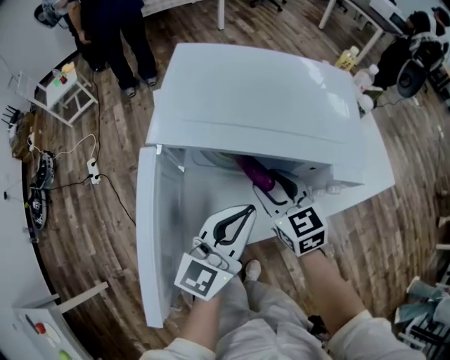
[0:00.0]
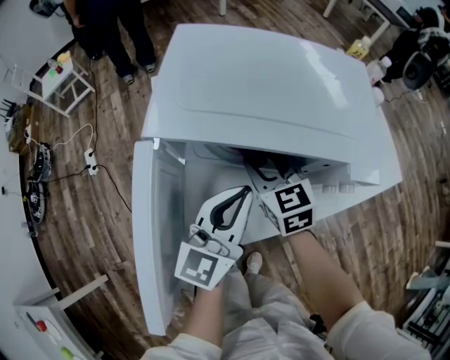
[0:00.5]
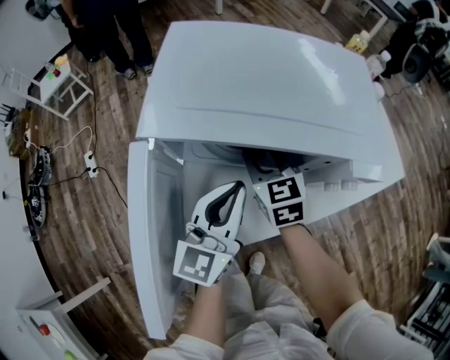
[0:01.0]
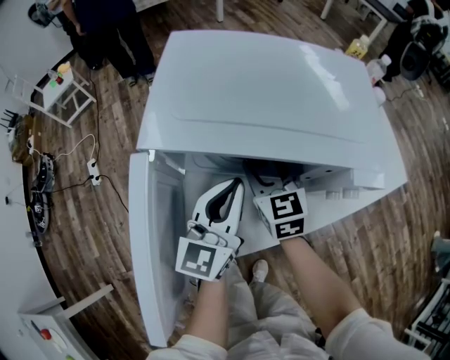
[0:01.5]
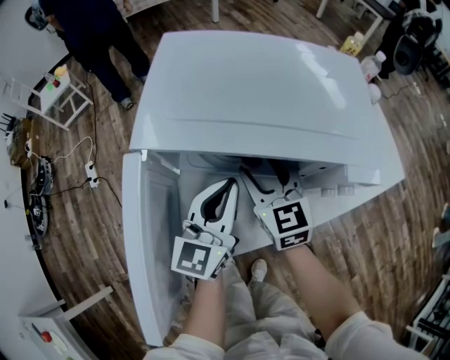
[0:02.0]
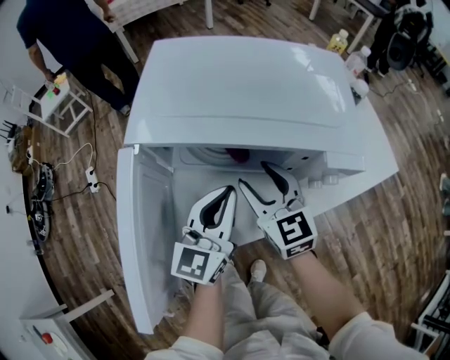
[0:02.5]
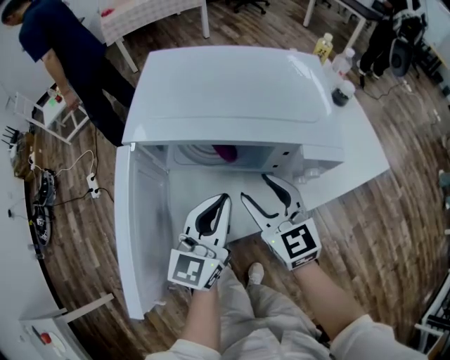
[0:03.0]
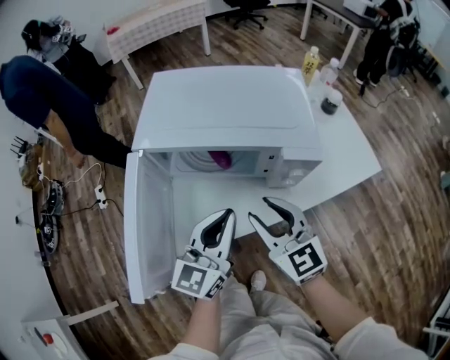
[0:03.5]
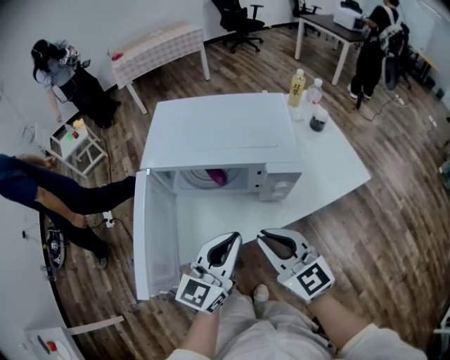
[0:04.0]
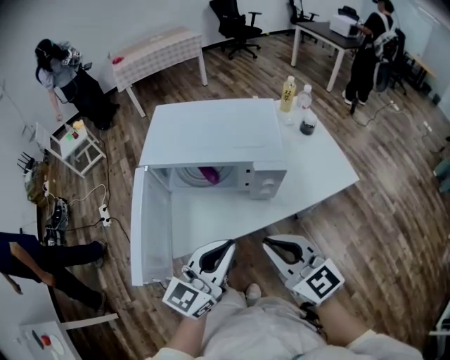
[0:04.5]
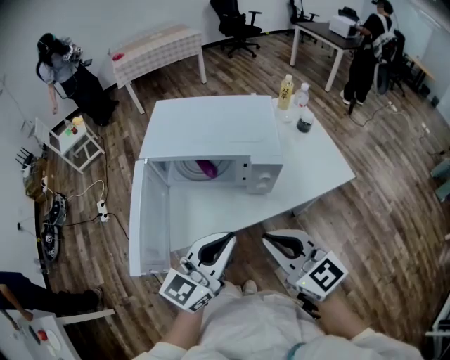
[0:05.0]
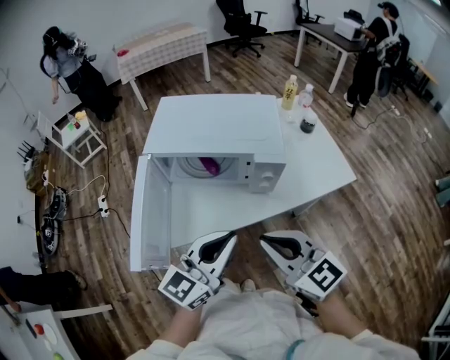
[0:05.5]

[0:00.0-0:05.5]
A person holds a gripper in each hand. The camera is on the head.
0:00.0 to 0:02.0: The left gripper is displaced forward by approximately 5 cm.
0:02.0 to 0:03.5: The right gripper travels backward, upward and to the right by approximately 20 cm; the left gripper heads backward, to the right and upward, covering approximately 15 cm.
0:03.5 to 0:05.5: Both grippers move backward and upward, about 15 cm. The right gripper closes.

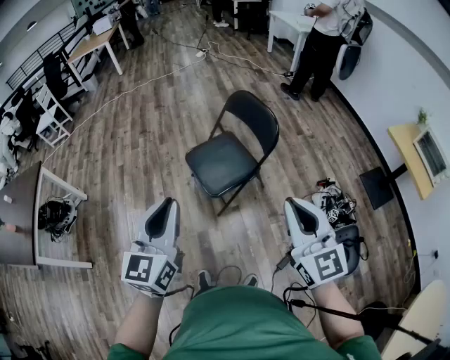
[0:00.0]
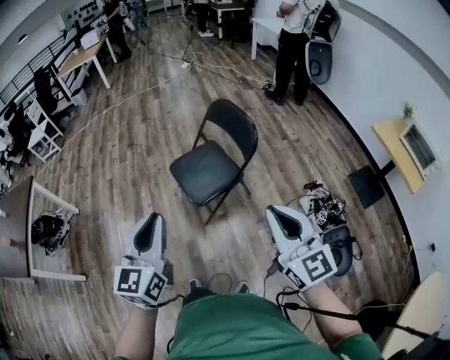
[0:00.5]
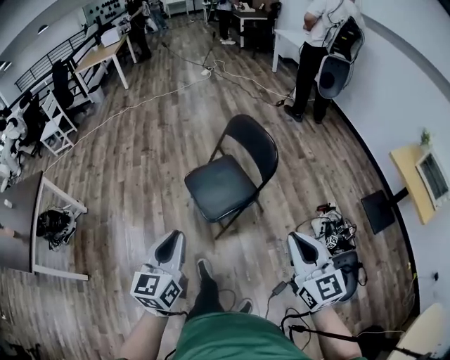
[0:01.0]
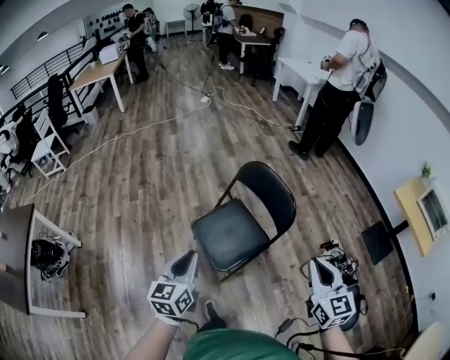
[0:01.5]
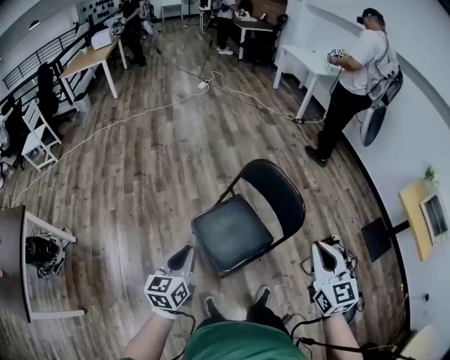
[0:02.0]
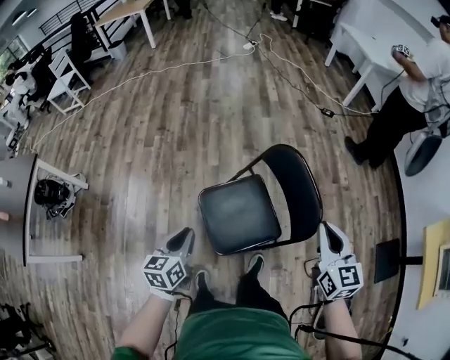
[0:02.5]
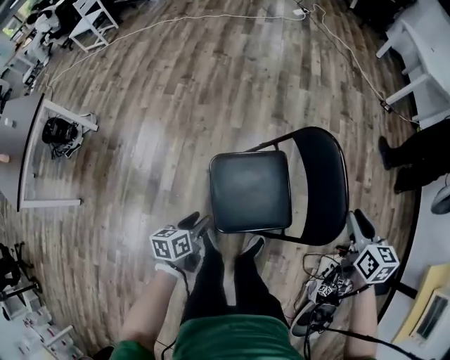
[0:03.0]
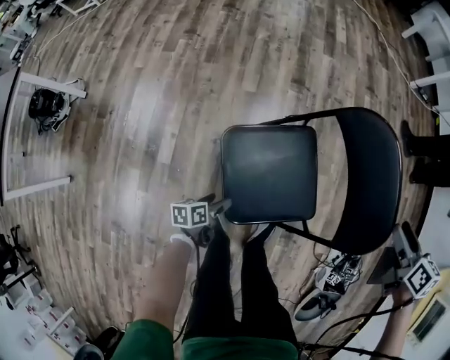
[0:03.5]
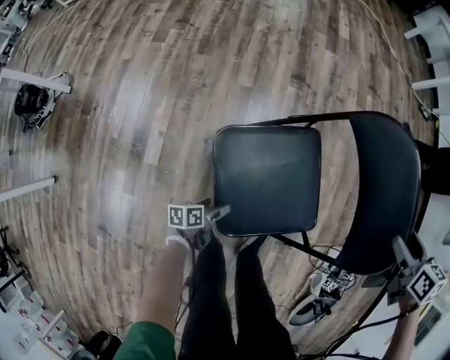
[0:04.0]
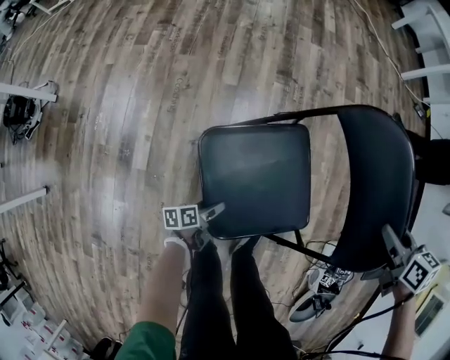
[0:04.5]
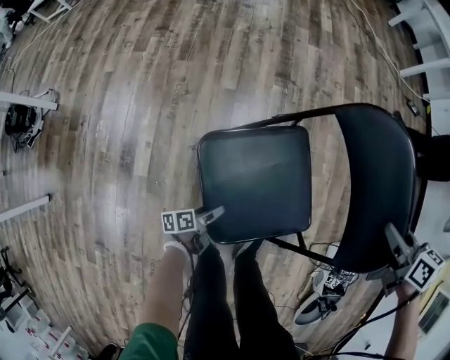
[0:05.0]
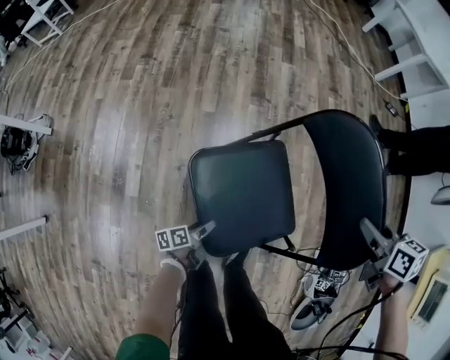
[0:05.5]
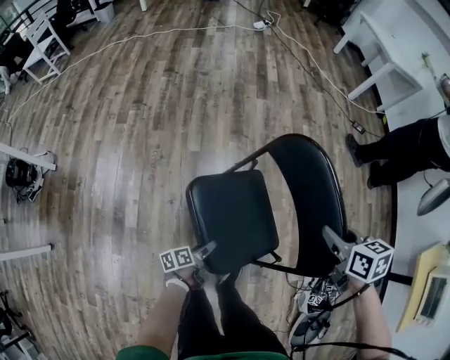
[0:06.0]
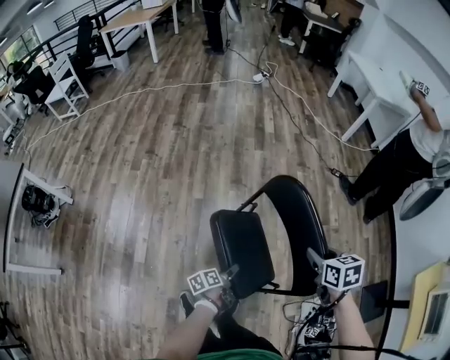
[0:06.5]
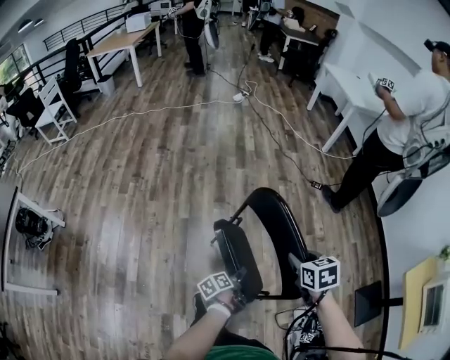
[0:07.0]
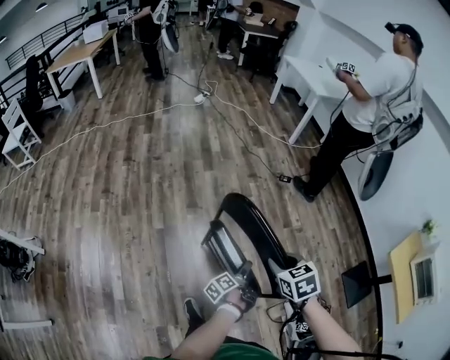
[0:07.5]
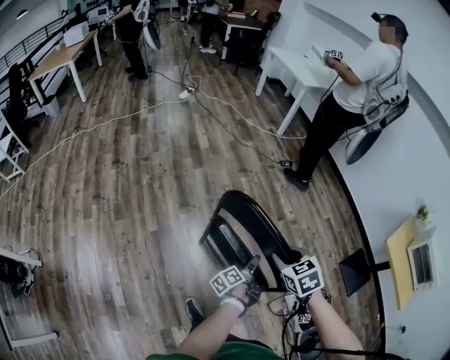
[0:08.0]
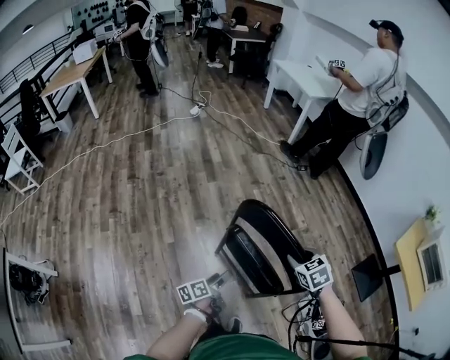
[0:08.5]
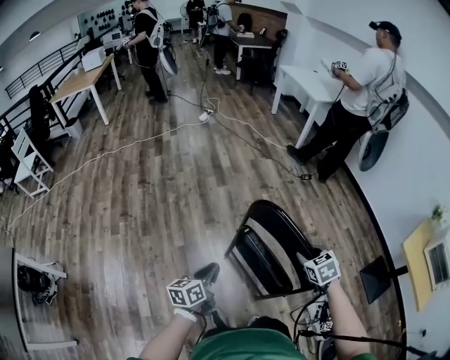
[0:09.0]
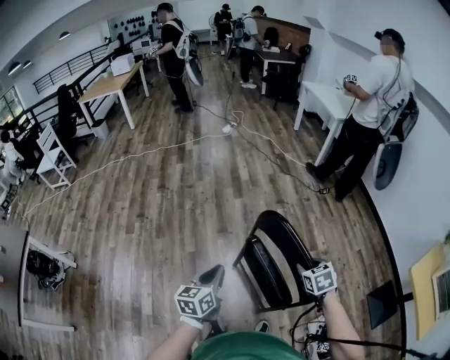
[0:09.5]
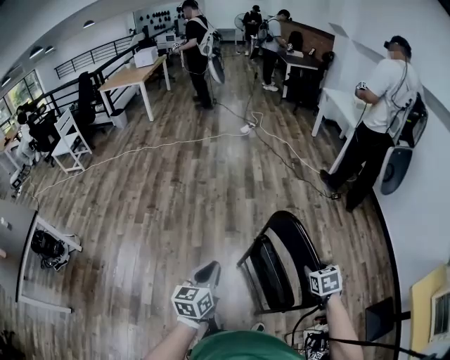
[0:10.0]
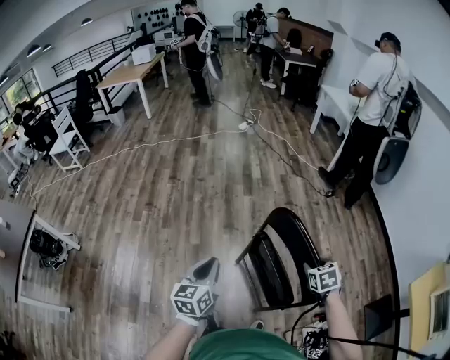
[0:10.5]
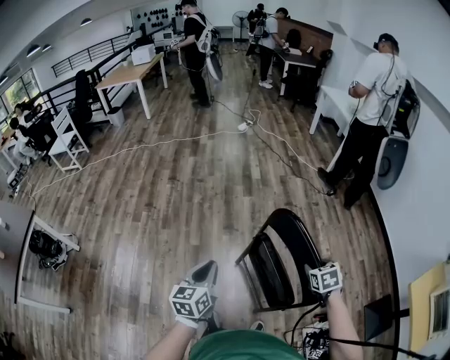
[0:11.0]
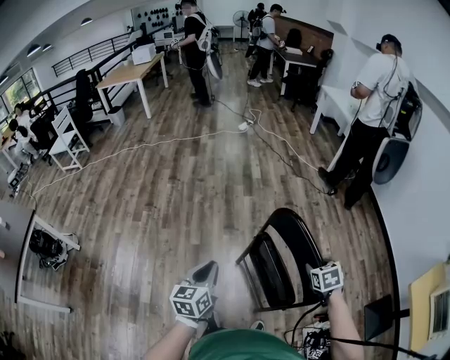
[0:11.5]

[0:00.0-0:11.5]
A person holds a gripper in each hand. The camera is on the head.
0:00.0 to 0:02.0: The left gripper travels forward and downward by about 35 cm, and changes its angle by approximately 20 degrees. The right gripper moves forward, about 30 cm.
0:02.0 to 0:04.0: The right gripper goes some 50 cm downward and forward, angles its fingers downward, by roughly 40 degrees, and opens its fingers. The left gripper moves downward, approximately 60 cm, rolls counterclockwise, seen from behind, by approximately 50 degrees, and opens its fingers.
0:04.0 to 0:06.0: The right gripper shifts roughly 10 cm upward, and closes its fingers. The left gripper moves upward and to the right, some 20 cm.
0:06.0 to 0:07.5: The right gripper shifts about 10 cm upward and to the right, while the left gripper shifts roughly 40 cm to the right, upward and forward.
0:07.5 to 0:09.5: The left gripper shifts some 30 cm upward and to the left, rotates around the line of its fingers by roughly 60 degrees, clockwise from behind, and closes up. Meanwhile the right gripper is displaced to the right by roughly 5 cm.
0:09.5 to 0:11.5: The grippers move only a little.

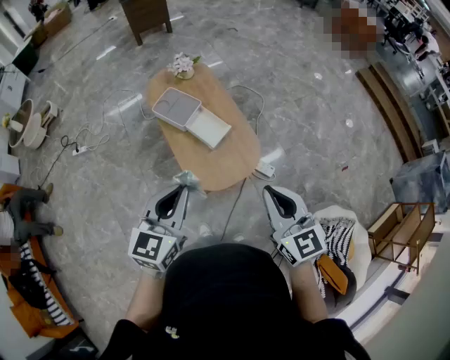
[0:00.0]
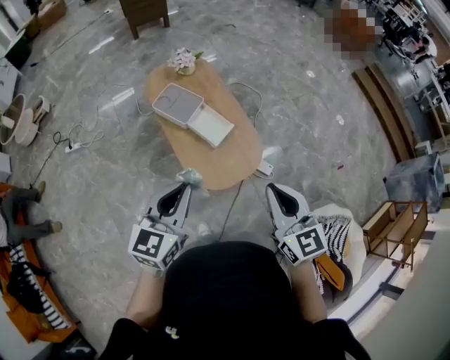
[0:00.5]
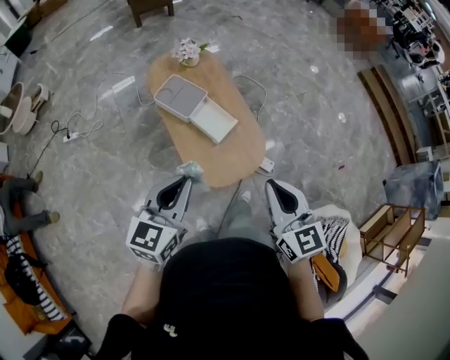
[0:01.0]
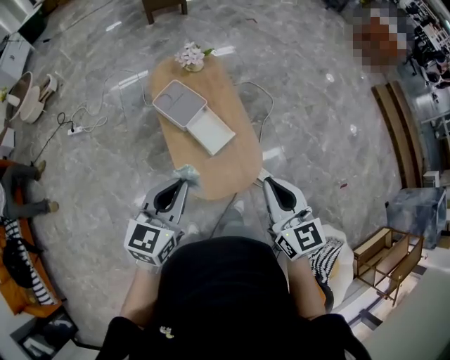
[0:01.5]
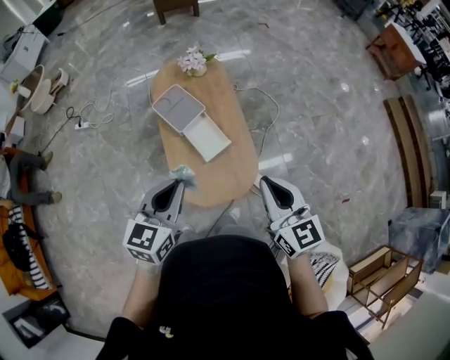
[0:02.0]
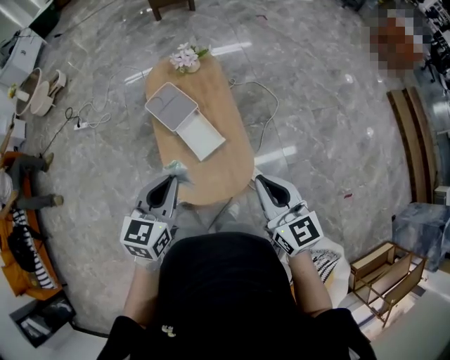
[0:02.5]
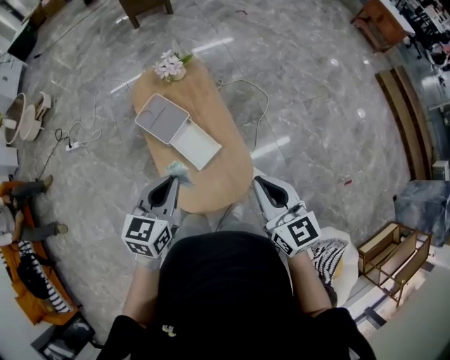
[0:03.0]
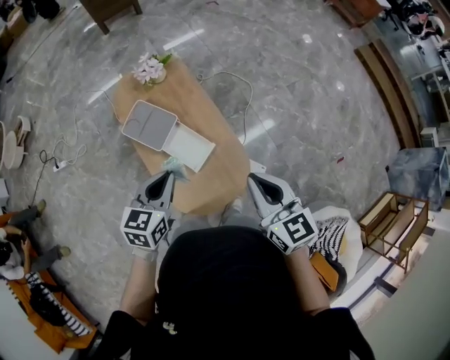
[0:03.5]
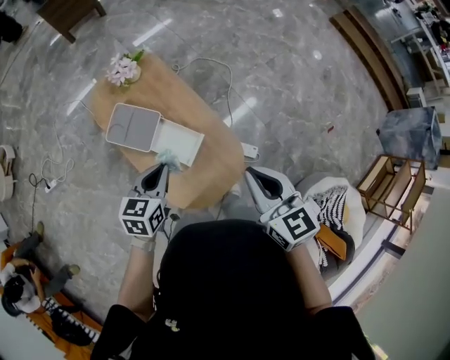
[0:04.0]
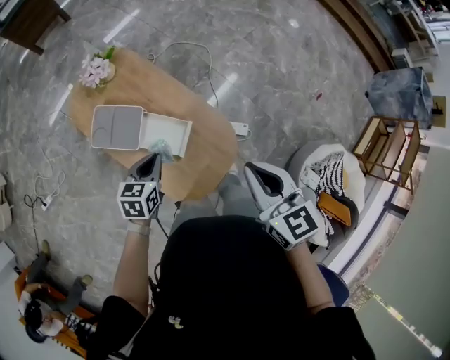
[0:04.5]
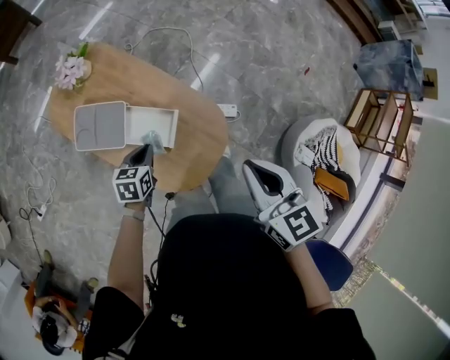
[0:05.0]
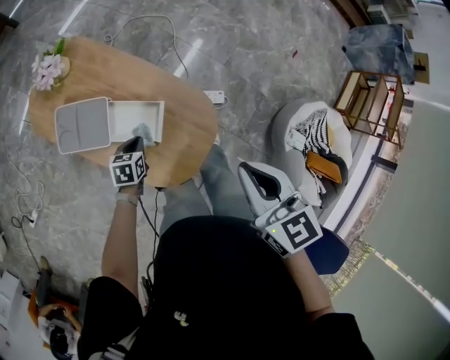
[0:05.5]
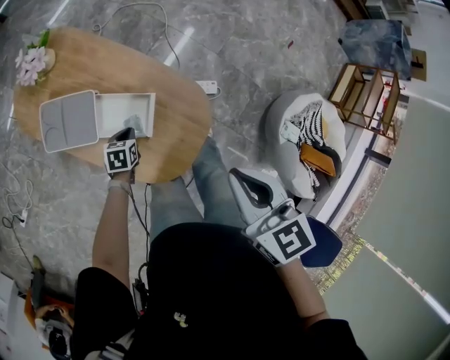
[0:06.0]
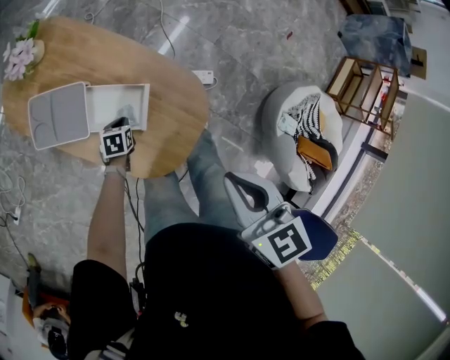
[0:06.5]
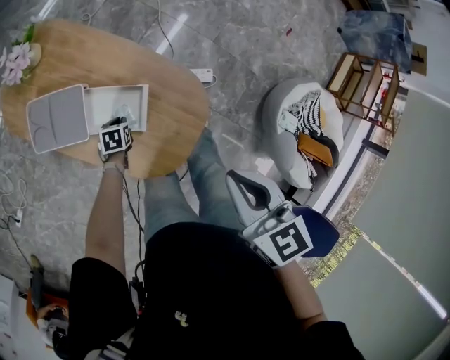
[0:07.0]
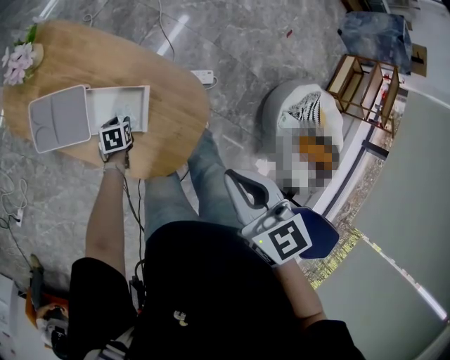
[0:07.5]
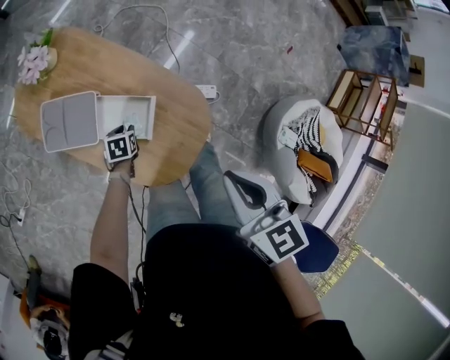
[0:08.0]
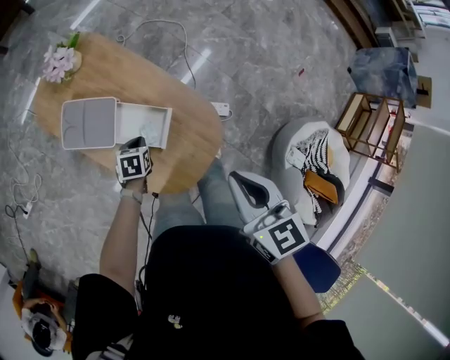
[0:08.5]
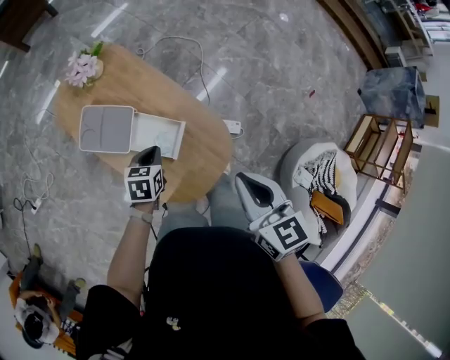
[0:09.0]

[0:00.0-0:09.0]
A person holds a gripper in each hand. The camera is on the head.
0:00.0 to 0:02.0: The right gripper goes some 20 cm forward, while the left gripper goes some 20 cm forward and to the right.
0:02.0 to 0:04.5: The right gripper changes place by some 10 cm, and changes its angle by roughly 30 degrees, while the left gripper moves downward, roughly 25 cm, and turns by some 40 degrees.
0:04.5 to 0:07.0: The left gripper goes some 35 cm downward, and changes its angle by some 30 degrees. Meanwhile the right gripper goes about 10 cm downward, and changes its angle by about 20 degrees.
0:07.0 to 0:09.0: The left gripper heads upward, covering some 25 cm, and opens, then closes once more. The right gripper is displaced upward by some 5 cm.
